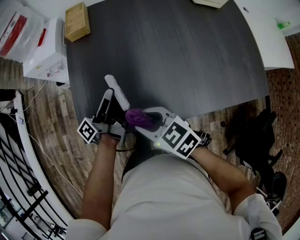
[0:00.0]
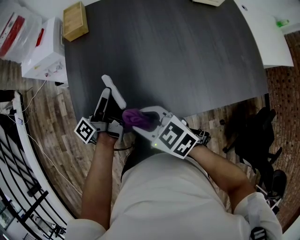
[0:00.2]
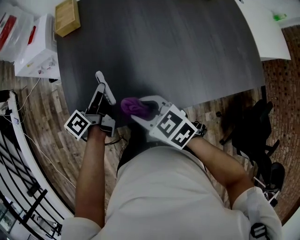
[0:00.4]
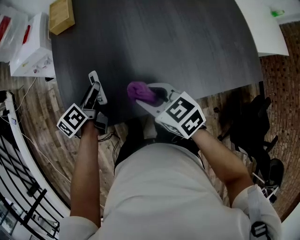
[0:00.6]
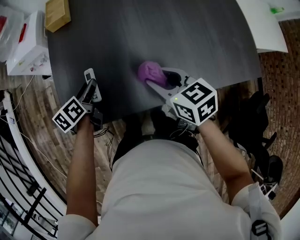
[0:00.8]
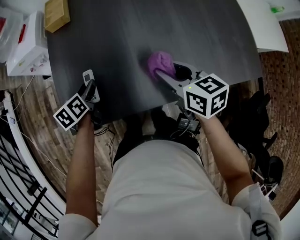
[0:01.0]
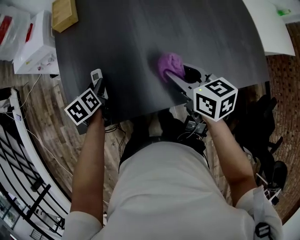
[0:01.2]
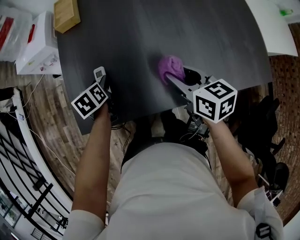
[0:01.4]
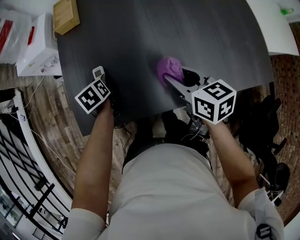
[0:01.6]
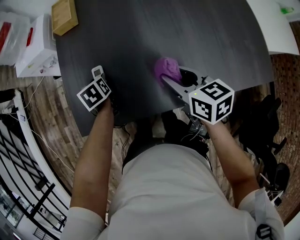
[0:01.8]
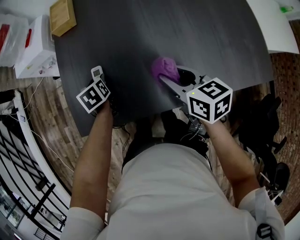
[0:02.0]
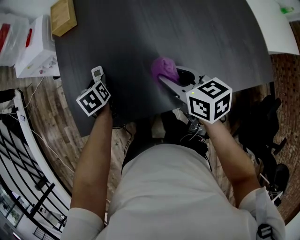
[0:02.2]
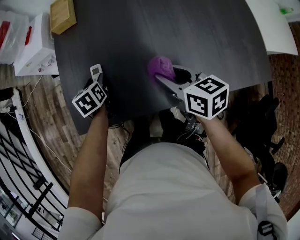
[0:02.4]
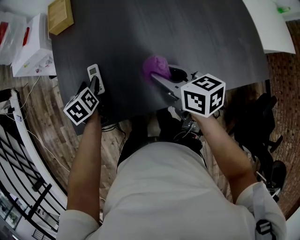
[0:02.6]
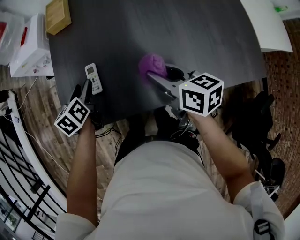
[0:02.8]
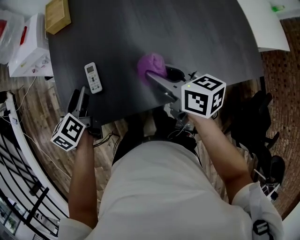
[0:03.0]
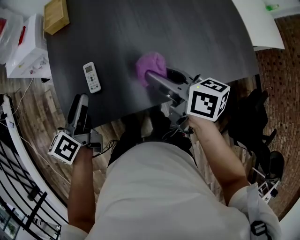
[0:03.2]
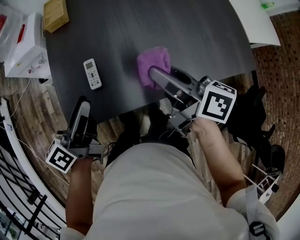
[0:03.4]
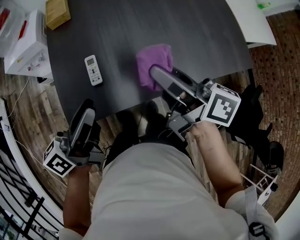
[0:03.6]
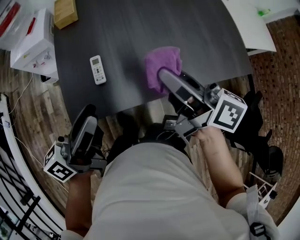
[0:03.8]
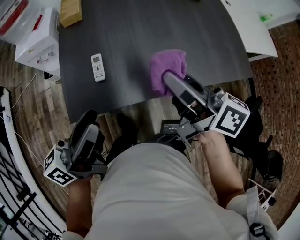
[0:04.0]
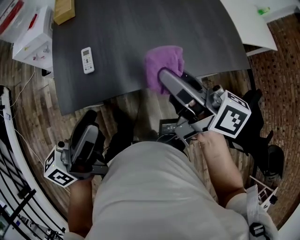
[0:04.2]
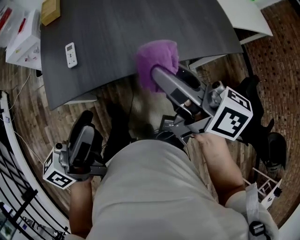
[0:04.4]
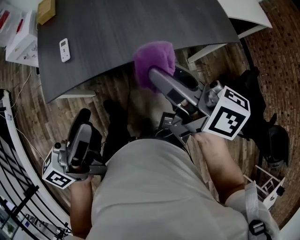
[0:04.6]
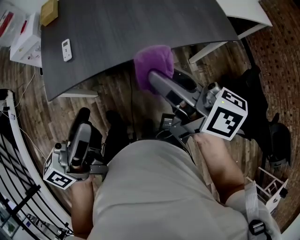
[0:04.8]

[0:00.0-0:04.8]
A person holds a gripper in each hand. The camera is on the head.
0:00.0 to 0:01.6: The left gripper moves downward, about 10 cm, and points its fingers roughly 70 degrees further downward; the right gripper heads to the right, covering approximately 15 cm, and changes its angle by some 30 degrees.
0:01.6 to 0:03.2: The left gripper travels upward and backward by about 20 cm, and angles its fingers upward, by some 40 degrees. Meanwhile the right gripper heads upward, covering some 5 cm, and turns by approximately 20 degrees.
0:03.2 to 0:04.8: The two grippers go approximately 30 cm backward, to the right and upward. The left gripper swivels some 30 degrees.

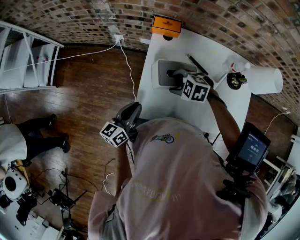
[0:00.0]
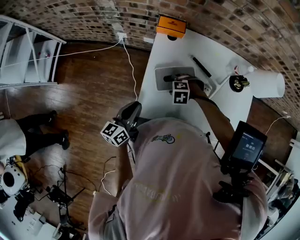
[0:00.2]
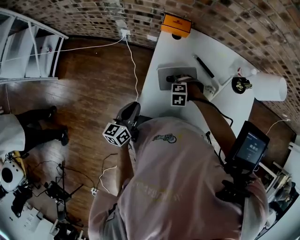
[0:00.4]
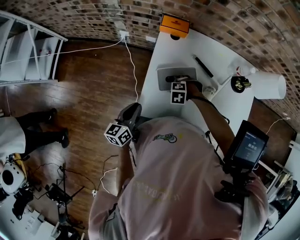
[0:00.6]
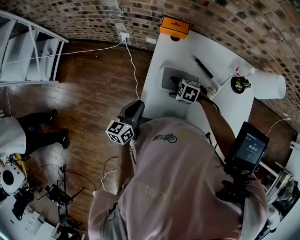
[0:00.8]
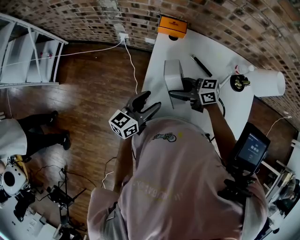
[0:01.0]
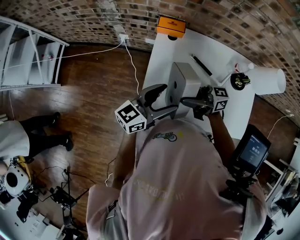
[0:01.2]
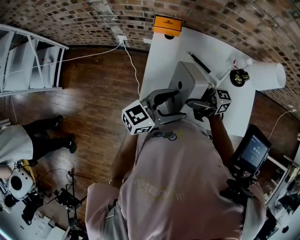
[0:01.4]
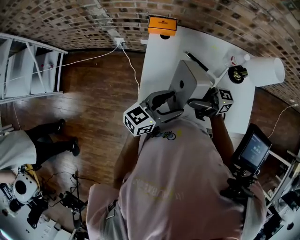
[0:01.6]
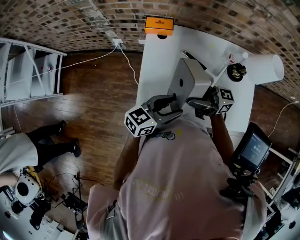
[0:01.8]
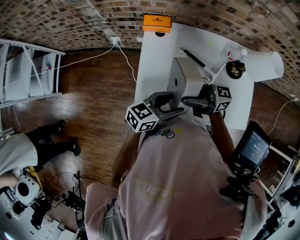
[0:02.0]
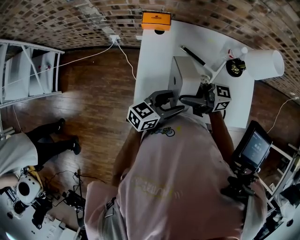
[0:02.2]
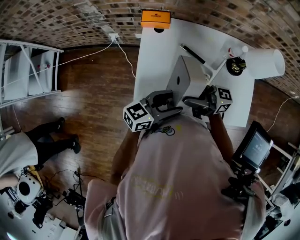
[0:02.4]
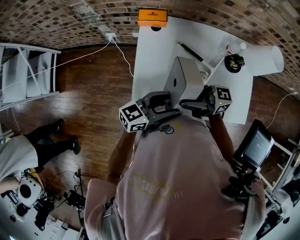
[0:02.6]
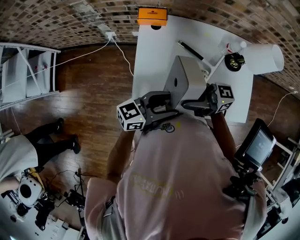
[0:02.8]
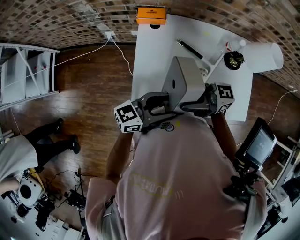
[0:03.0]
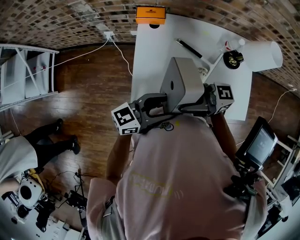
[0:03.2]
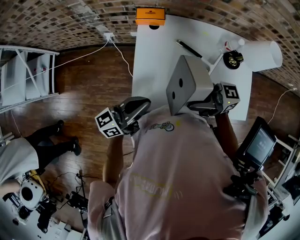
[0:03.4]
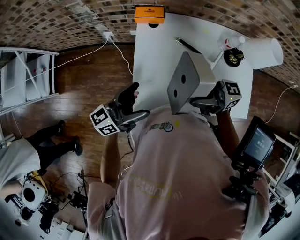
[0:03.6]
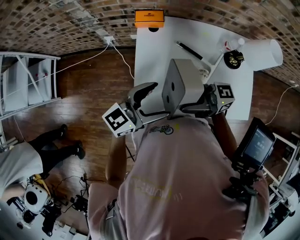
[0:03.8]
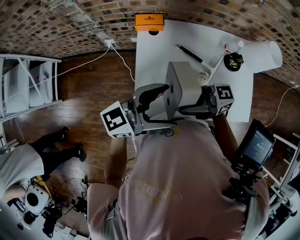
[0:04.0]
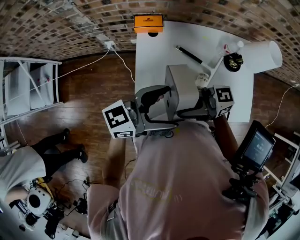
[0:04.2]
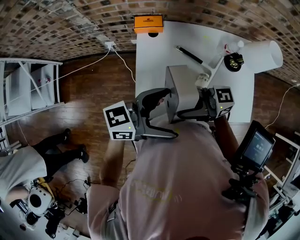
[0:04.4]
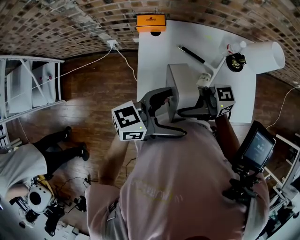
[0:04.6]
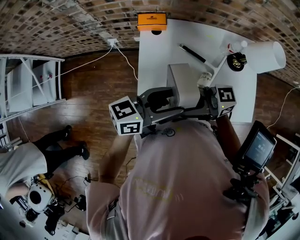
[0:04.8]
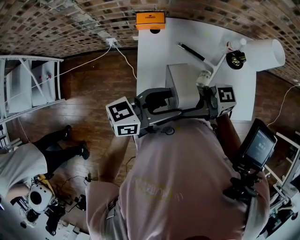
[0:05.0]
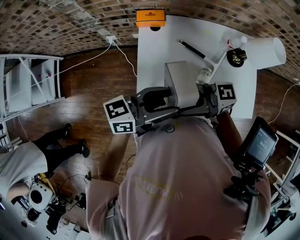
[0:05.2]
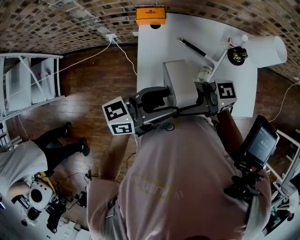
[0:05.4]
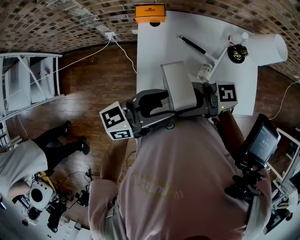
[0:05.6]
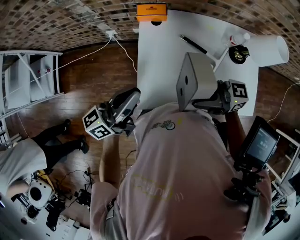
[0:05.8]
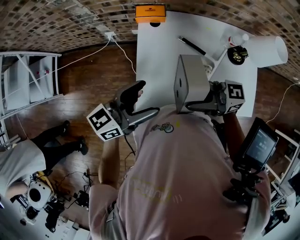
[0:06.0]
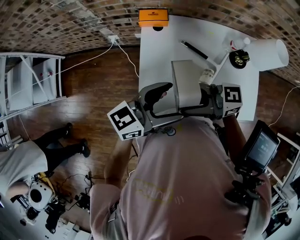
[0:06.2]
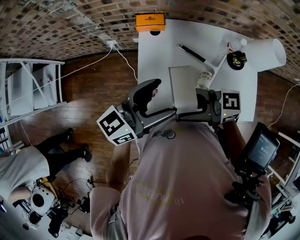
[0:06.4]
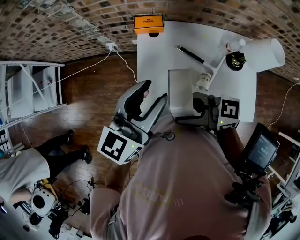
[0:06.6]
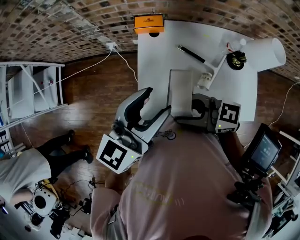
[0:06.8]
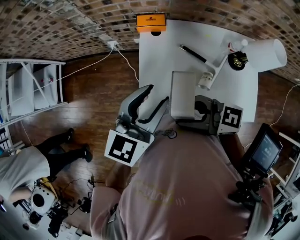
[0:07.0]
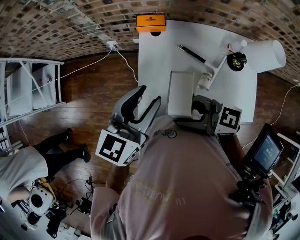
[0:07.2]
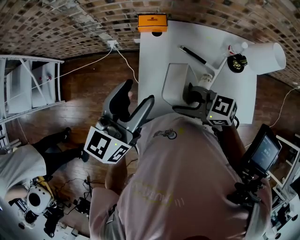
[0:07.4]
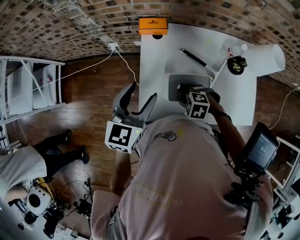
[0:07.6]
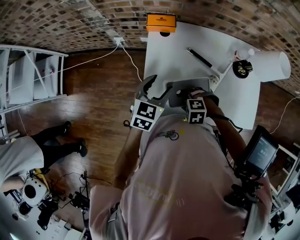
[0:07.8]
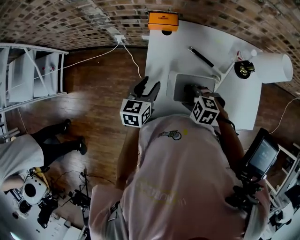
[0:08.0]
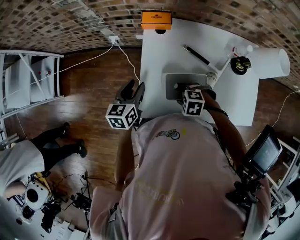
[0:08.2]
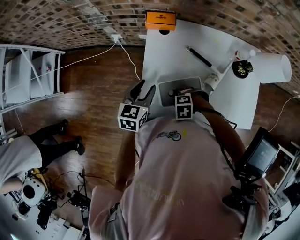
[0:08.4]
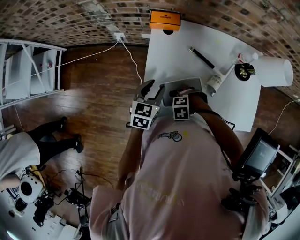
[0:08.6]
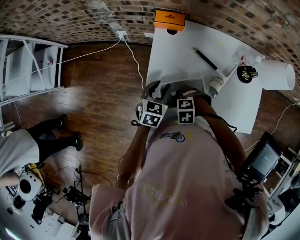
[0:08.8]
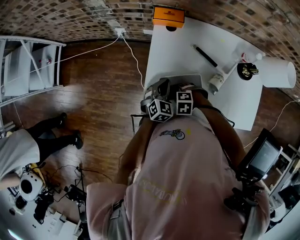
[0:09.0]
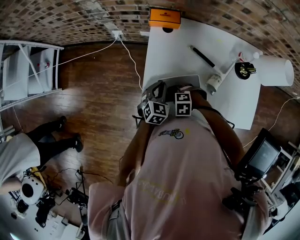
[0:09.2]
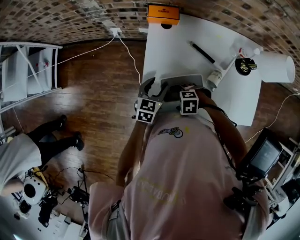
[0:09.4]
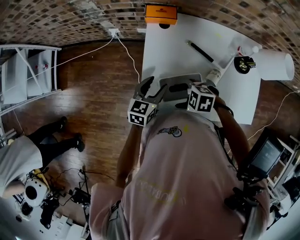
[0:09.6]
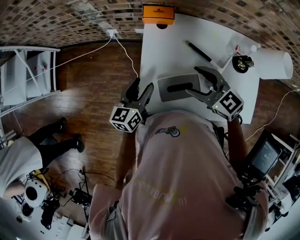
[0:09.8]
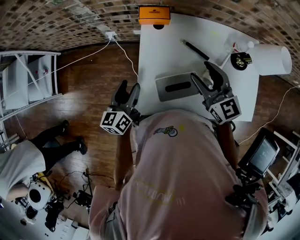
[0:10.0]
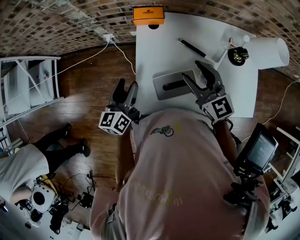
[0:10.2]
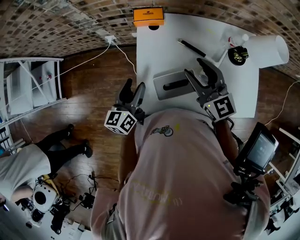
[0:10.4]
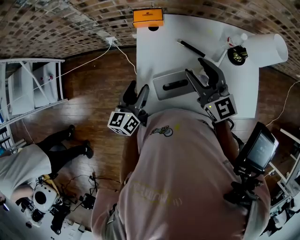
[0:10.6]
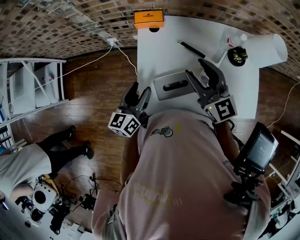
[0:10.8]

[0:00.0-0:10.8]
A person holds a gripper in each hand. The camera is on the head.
0:00.0 to 0:01.6: The left gripper ends up roughly 20 cm from where it was, swivels some 40 degrees, and opens up, while the right gripper is displaced upward by roughly 15 cm, and tilts its fingers roughly 90 degrees upward.
0:01.6 to 0:03.0: The right gripper ends up roughly 5 cm from where it was.
0:03.0 to 0:04.6: The left gripper travels upward by approximately 10 cm, and opens its fingers.
0:04.6 to 0:06.2: The left gripper closes, then reopens.
0:06.2 to 0:07.8: The left gripper goes up and down, roughly 20 cm each way, reversing 3 times, and angles its fingers downward, by some 30 degrees; the right gripper shifts about 25 cm downward, and points its fingers some 80 degrees further downward.
0:07.8 to 0:09.2: The right gripper goes approximately 5 cm downward, while the left gripper moves downward, about 15 cm, and closes its fingers.
0:09.2 to 0:10.8: The left gripper shifts approximately 15 cm upward, turns by some 40 degrees, and opens its fingers. The right gripper moves upward, approximately 30 cm, tips its fingers upward by about 70 degrees, and opens, then closes again.
